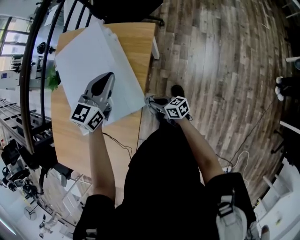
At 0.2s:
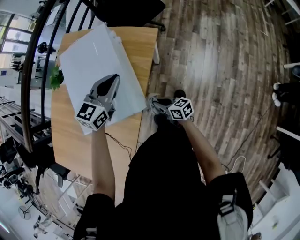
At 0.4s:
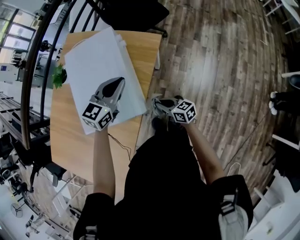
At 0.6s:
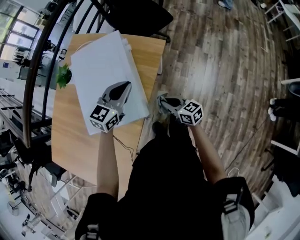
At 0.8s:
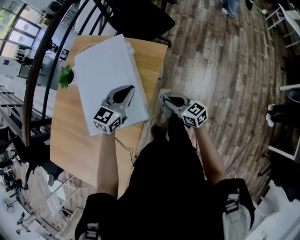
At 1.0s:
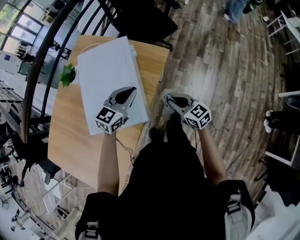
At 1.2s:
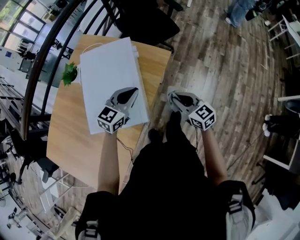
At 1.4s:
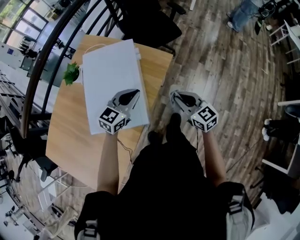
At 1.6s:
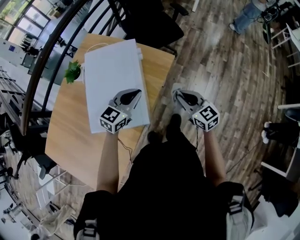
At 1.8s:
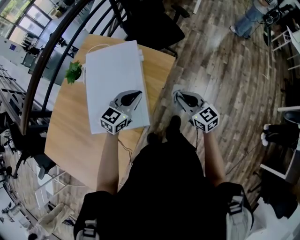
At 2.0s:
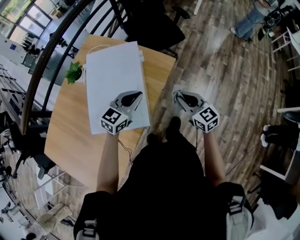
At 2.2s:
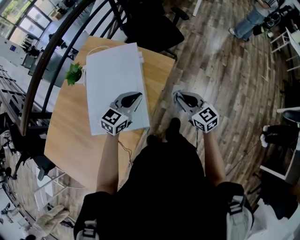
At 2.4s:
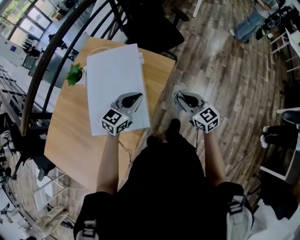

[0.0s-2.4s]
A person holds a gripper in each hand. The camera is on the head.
0.0s to 1.2s: The right gripper travels upward, to the right and forward by approximately 25 cm, and turns by roughly 40 degrees.
1.2s to 2.4s: The grippers move only a little.

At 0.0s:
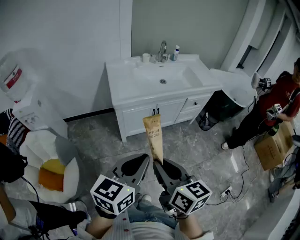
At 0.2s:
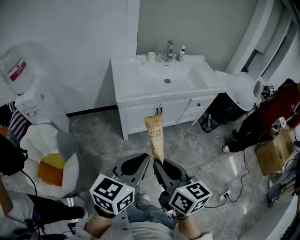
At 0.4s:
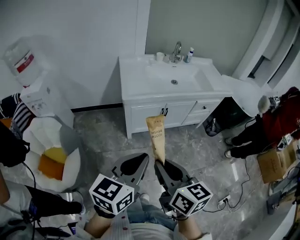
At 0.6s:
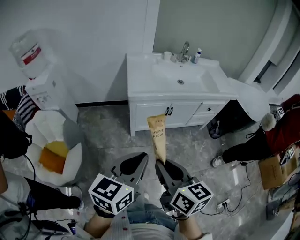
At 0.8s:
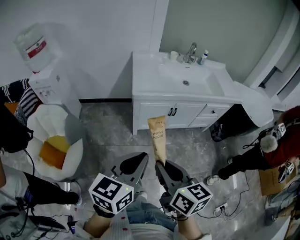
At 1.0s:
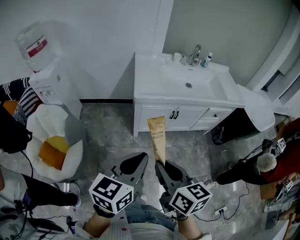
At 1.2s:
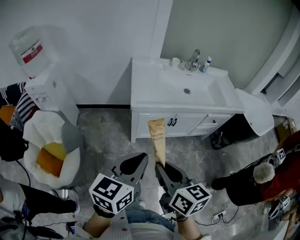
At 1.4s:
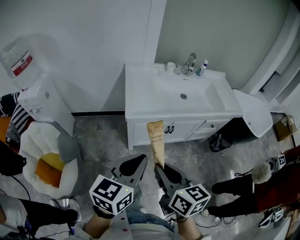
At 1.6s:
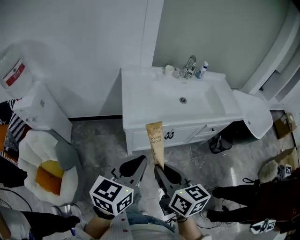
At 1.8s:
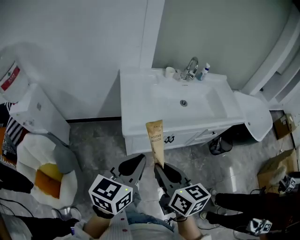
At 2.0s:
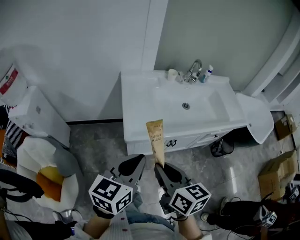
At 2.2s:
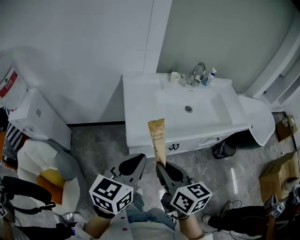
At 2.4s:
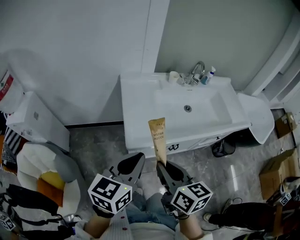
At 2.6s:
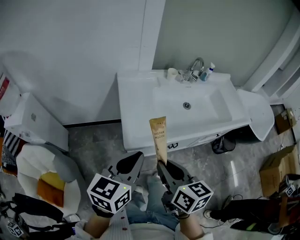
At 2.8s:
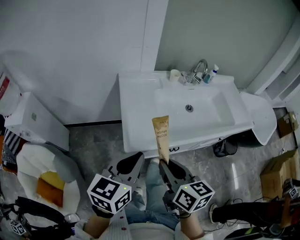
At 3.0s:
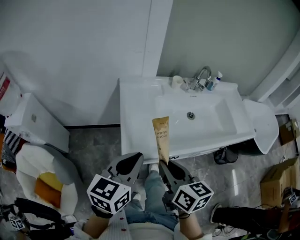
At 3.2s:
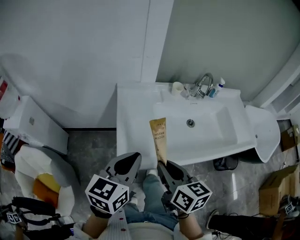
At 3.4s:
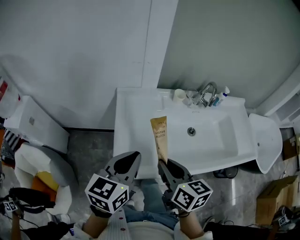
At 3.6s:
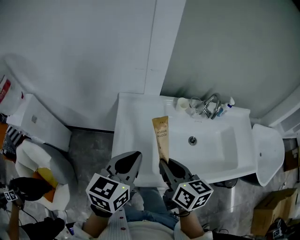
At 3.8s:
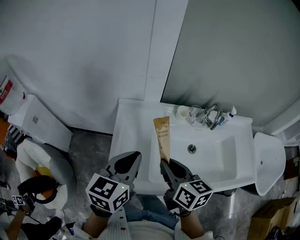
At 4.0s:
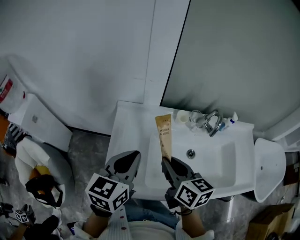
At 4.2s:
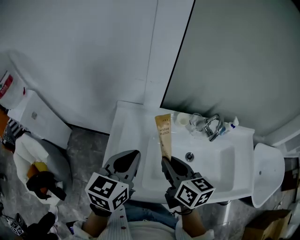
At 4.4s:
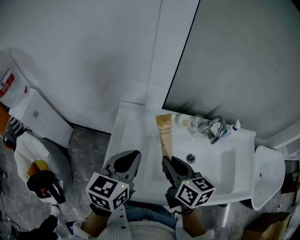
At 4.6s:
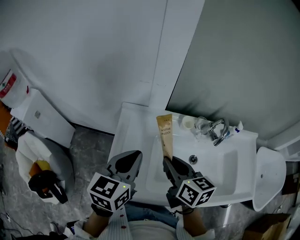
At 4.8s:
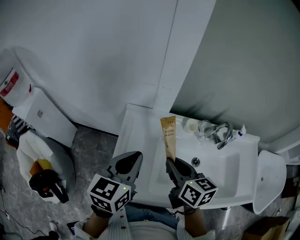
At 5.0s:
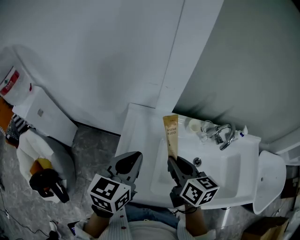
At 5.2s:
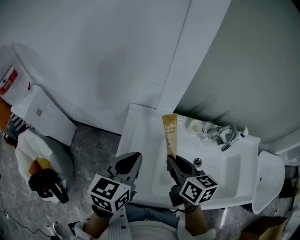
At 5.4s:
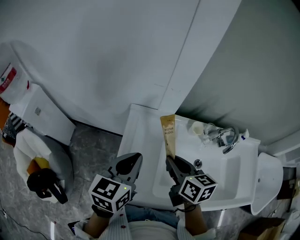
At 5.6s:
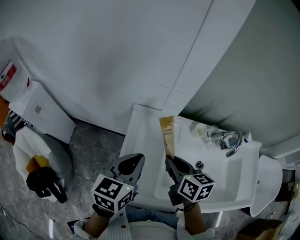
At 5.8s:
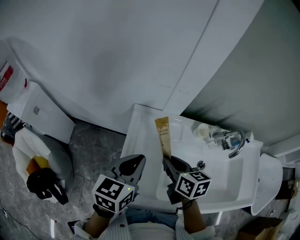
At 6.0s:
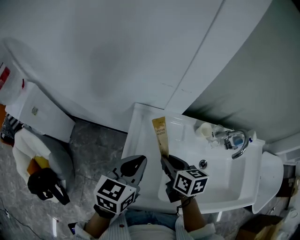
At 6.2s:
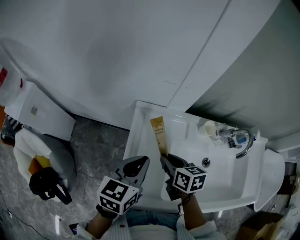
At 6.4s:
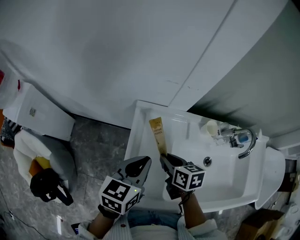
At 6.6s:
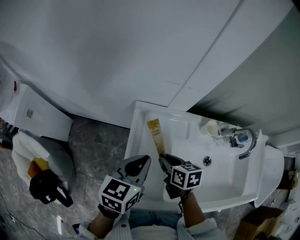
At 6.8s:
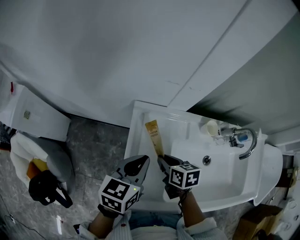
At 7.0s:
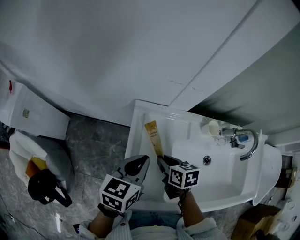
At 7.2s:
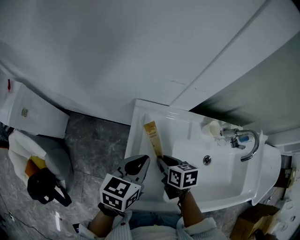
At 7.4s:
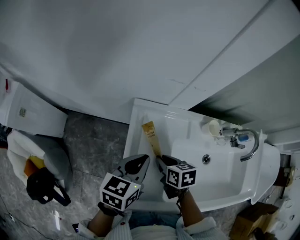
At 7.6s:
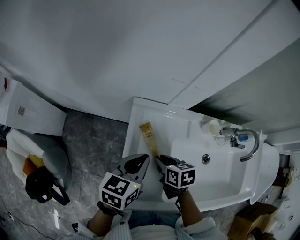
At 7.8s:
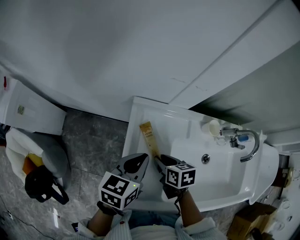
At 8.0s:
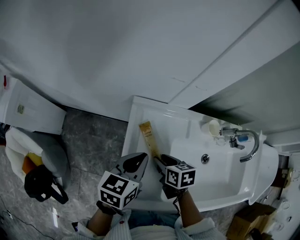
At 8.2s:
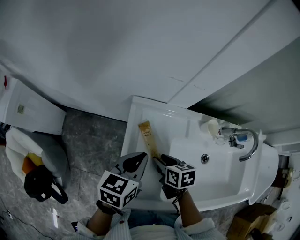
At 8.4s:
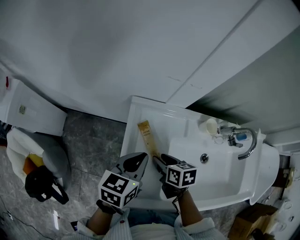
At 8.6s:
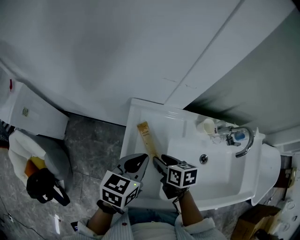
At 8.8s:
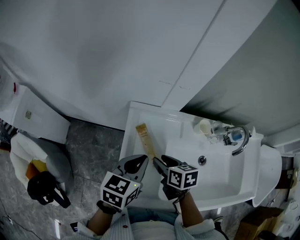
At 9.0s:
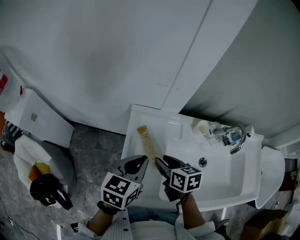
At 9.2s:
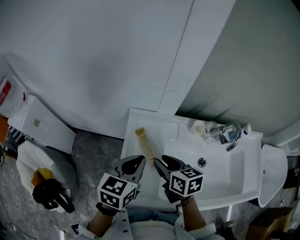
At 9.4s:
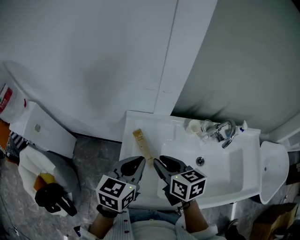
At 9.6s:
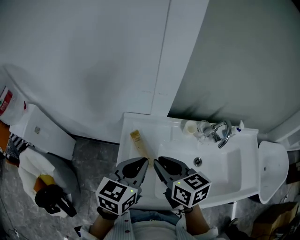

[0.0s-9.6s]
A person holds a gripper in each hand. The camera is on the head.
0.0s to 1.6s: Both grippers move forward, roughly 20 cm.
1.6s to 3.2s: The grippers both shift forward by some 25 cm.
3.2s to 4.8s: Both grippers travel together forward, about 20 cm.
4.8s to 6.4s: The right gripper travels downward, to the left and forward by approximately 20 cm, and swivels approximately 20 degrees; the left gripper is displaced downward and forward by about 10 cm.
6.4s to 8.0s: The grippers both shift downward by about 5 cm.
8.0s to 9.6s: The left gripper moves upward and backward, about 15 cm; the right gripper is displaced upward by roughly 25 cm, and swivels roughly 30 degrees.

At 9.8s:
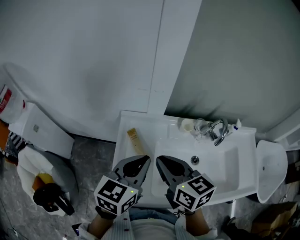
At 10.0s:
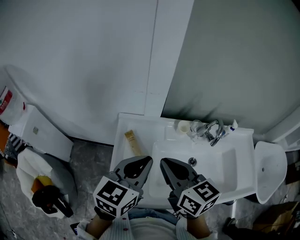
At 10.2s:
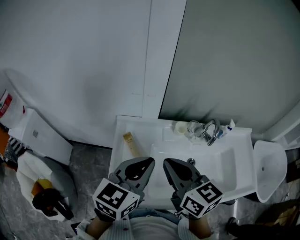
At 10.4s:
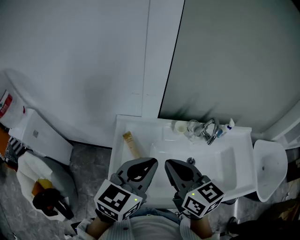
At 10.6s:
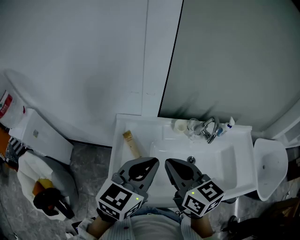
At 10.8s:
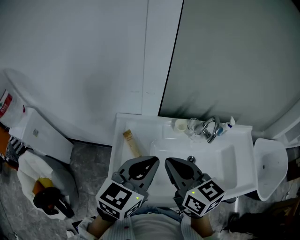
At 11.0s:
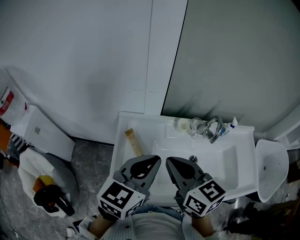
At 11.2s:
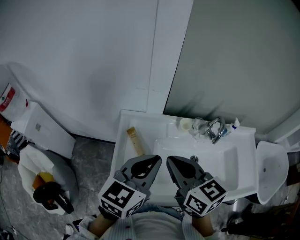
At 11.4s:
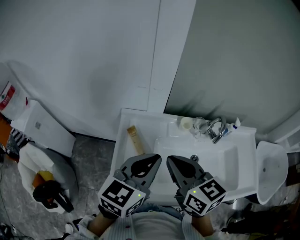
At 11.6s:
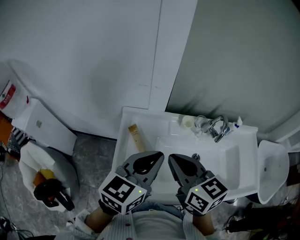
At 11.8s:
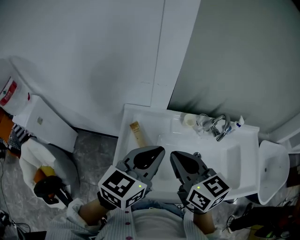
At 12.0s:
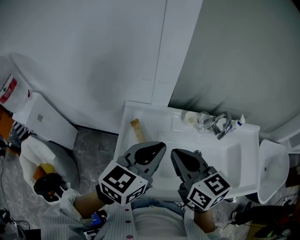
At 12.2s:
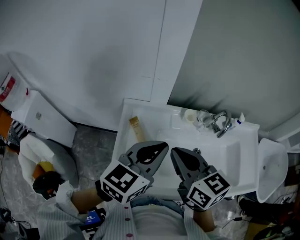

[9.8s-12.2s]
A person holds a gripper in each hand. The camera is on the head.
9.8s to 11.0s: The left gripper moves some 5 cm; the right gripper ends up about 5 cm from where it was.
11.0s to 12.2s: The grippers stay close to where they were, moving slightly.

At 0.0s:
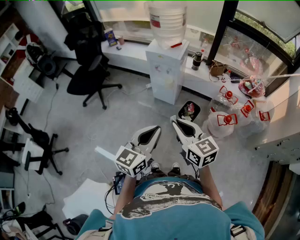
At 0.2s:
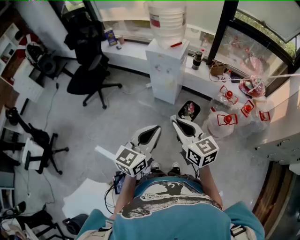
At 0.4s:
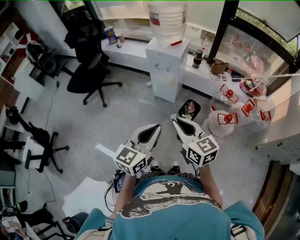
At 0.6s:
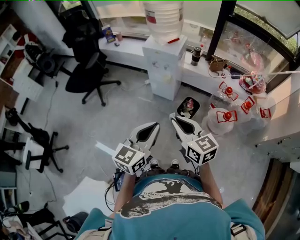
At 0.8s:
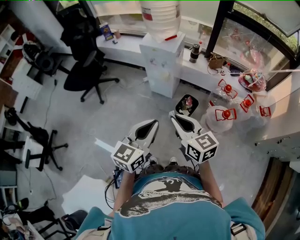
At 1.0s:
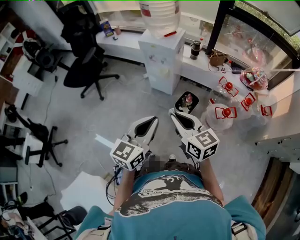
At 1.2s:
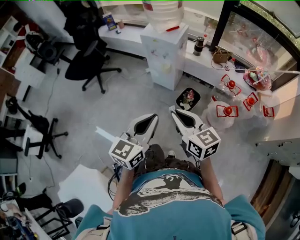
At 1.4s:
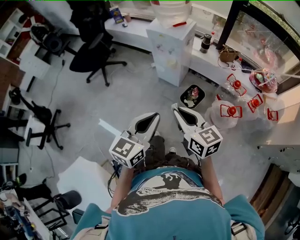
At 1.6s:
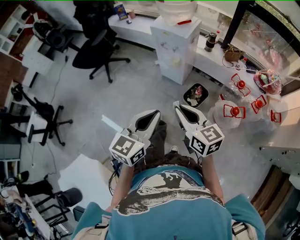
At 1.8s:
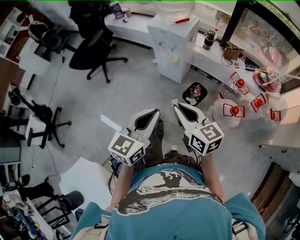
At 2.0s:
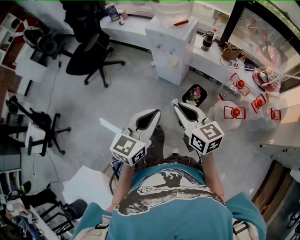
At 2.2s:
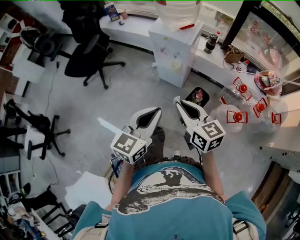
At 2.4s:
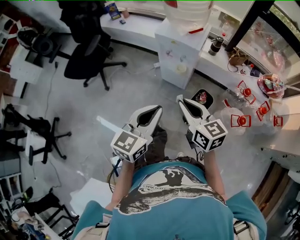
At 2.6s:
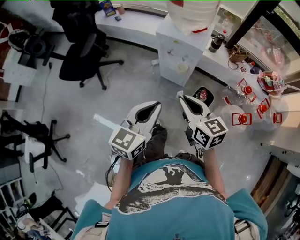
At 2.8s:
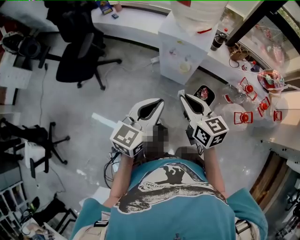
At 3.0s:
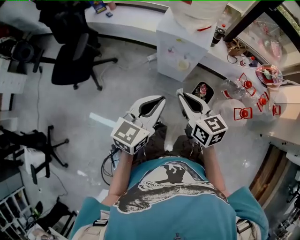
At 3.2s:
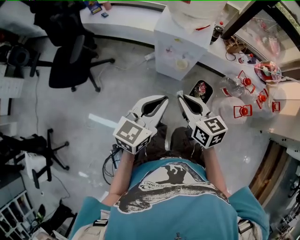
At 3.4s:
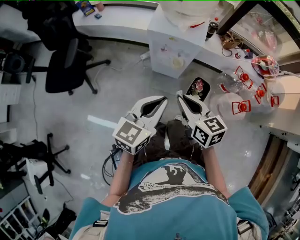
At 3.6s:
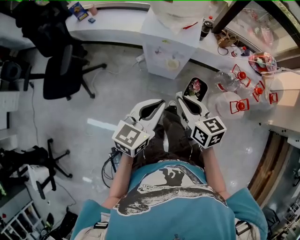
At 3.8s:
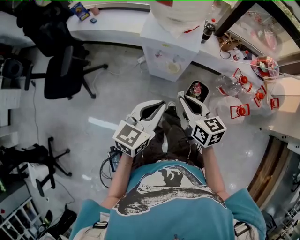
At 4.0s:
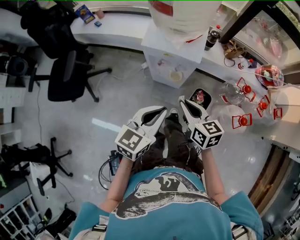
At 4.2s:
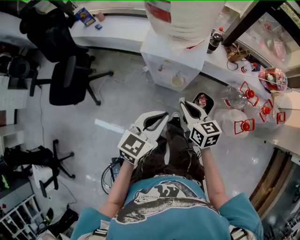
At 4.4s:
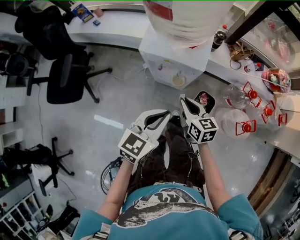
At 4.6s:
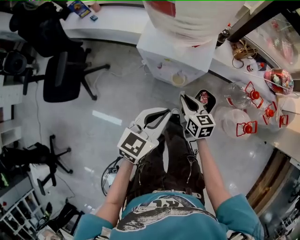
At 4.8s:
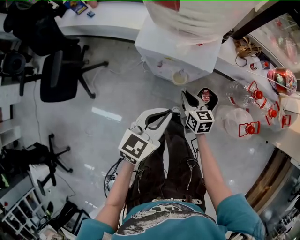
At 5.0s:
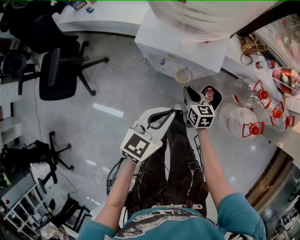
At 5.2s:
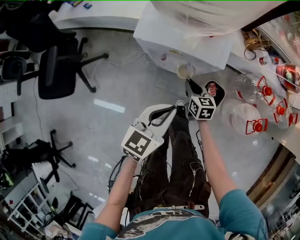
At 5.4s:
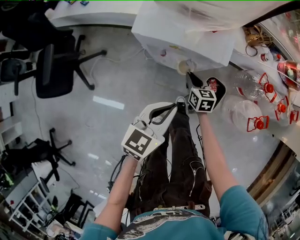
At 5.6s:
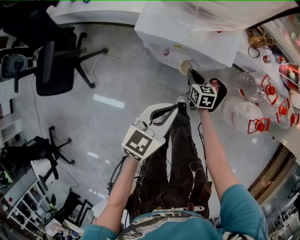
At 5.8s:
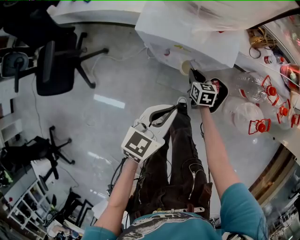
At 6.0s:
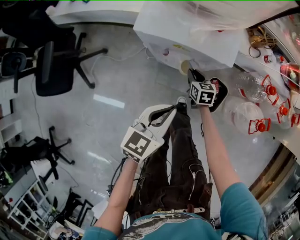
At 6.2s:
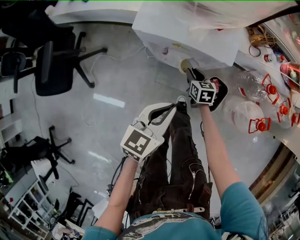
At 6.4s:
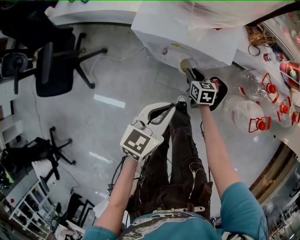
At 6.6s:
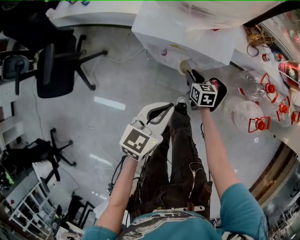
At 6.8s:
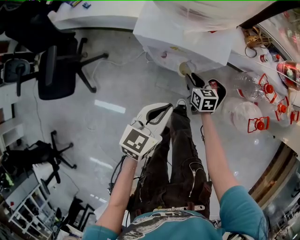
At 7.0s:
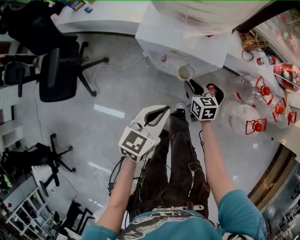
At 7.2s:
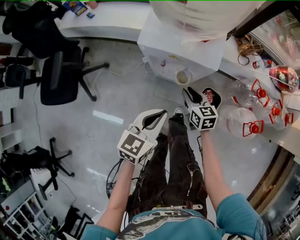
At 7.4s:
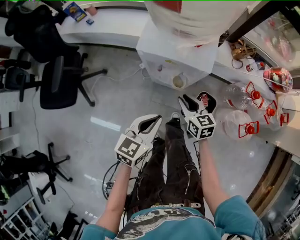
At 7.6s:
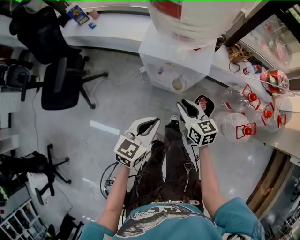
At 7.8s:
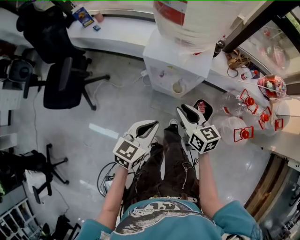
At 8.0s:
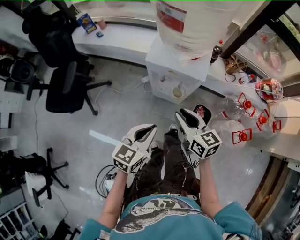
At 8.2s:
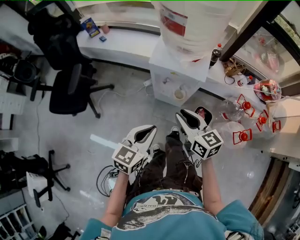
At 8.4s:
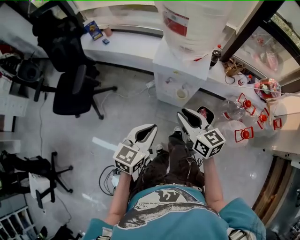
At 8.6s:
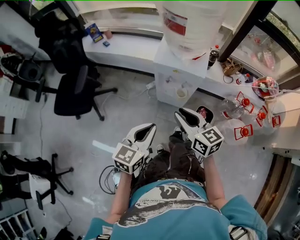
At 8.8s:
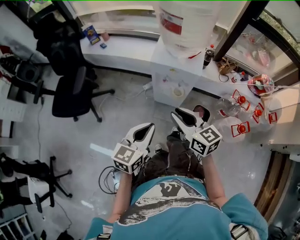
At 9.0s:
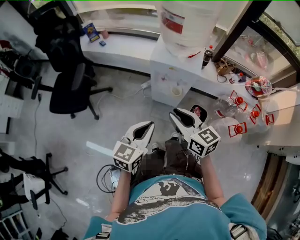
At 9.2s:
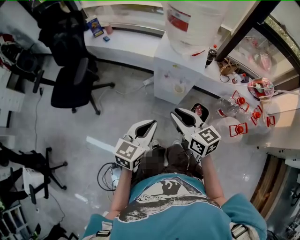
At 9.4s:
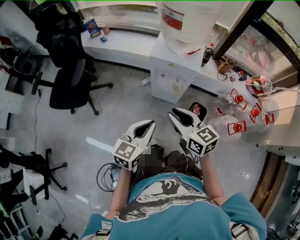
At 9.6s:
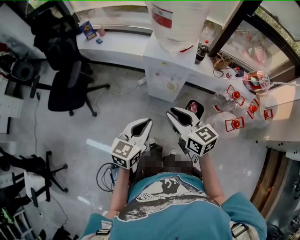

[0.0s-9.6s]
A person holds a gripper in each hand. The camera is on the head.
0.0s to 1.6s: The two grippers go approximately 5 cm to the right.
1.6s to 3.2s: The two grippers go roughly 30 cm forward and to the left.
3.2s to 4.8s: The left gripper is displaced forward and downward by some 20 cm. The right gripper travels downward and forward by roughly 30 cm.
4.8s to 6.4s: The left gripper is displaced downward by about 5 cm. Meanwhile the right gripper heads downward and forward, covering roughly 15 cm.
6.4s to 8.0s: The right gripper shifts approximately 35 cm upward and backward, and swivels about 30 degrees; the left gripper shifts about 15 cm upward, backward and to the left.
8.0s to 9.6s: Both grippers travel together backward and upward, roughly 10 cm.
